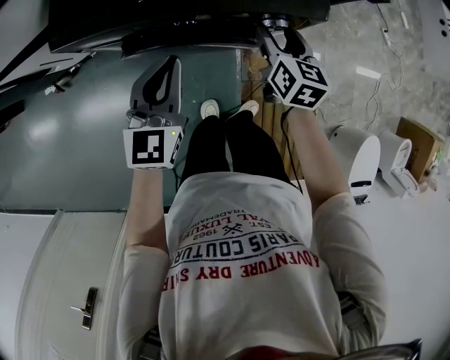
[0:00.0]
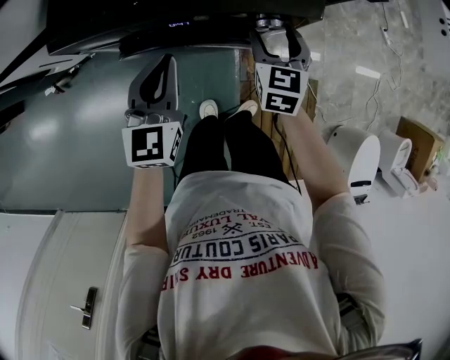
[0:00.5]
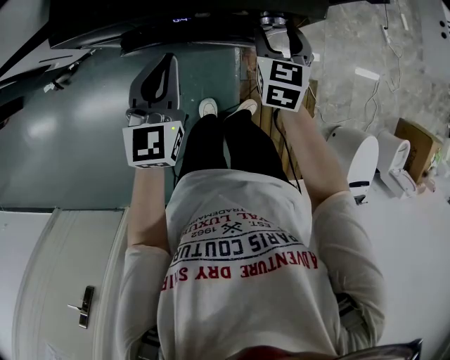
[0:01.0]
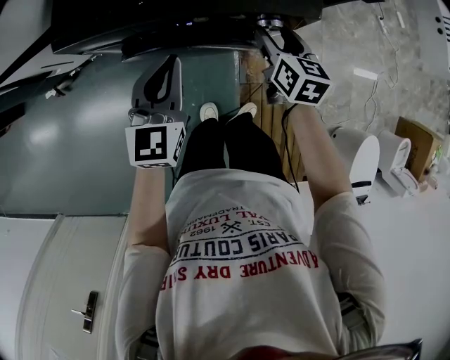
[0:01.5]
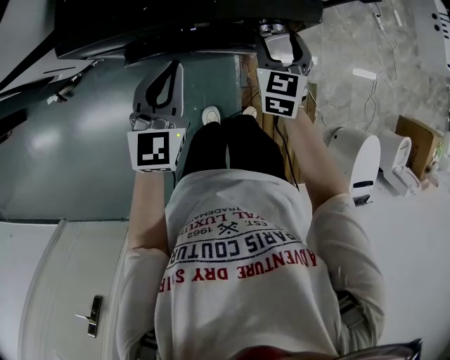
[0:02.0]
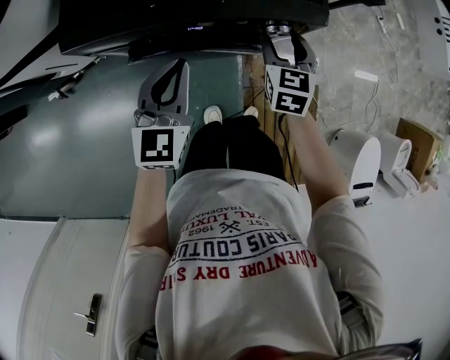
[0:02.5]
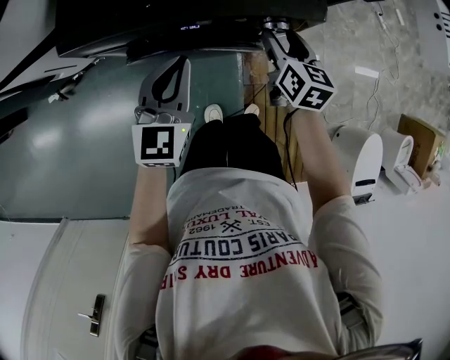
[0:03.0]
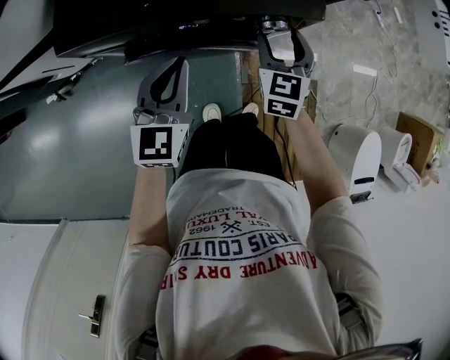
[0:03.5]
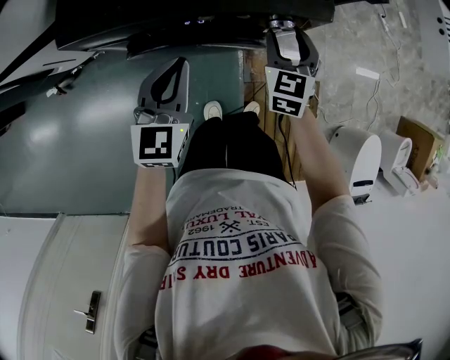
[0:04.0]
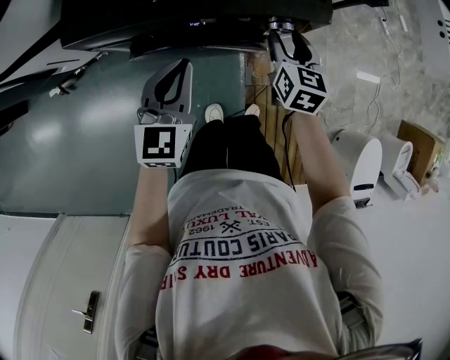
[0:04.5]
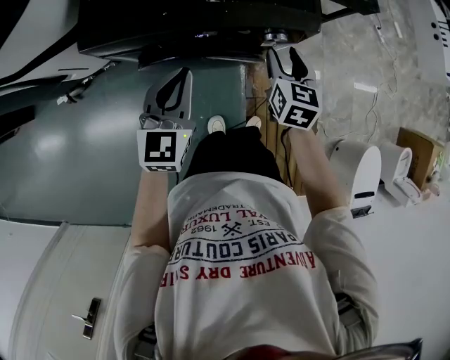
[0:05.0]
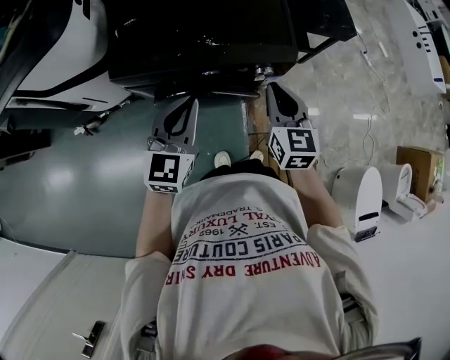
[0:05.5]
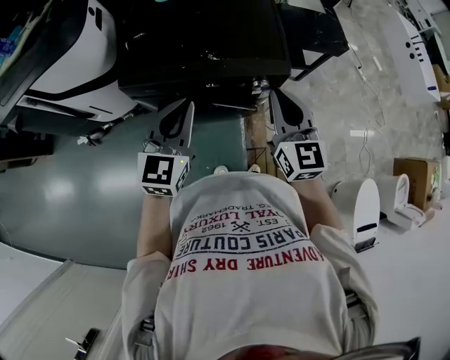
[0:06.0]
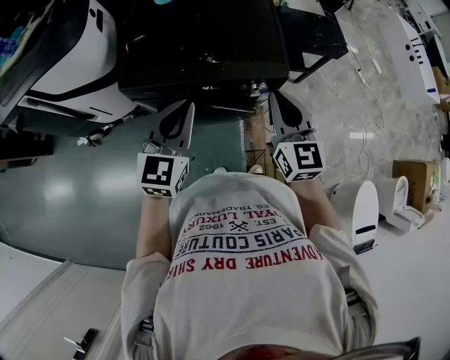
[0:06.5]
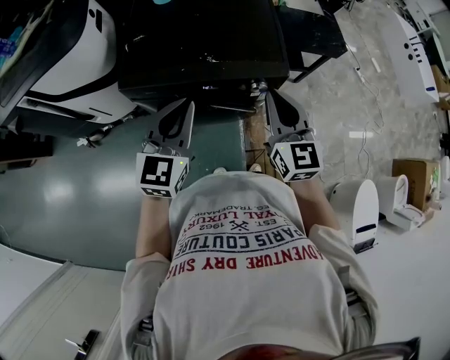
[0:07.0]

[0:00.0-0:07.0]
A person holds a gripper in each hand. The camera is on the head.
0:00.0 to 0:02.0: The right gripper turns by roughly 30 degrees.
0:05.0 to 0:07.0: The grippers both shift upward by approximately 20 cm. The right gripper turns by about 30 degrees, and closes up.

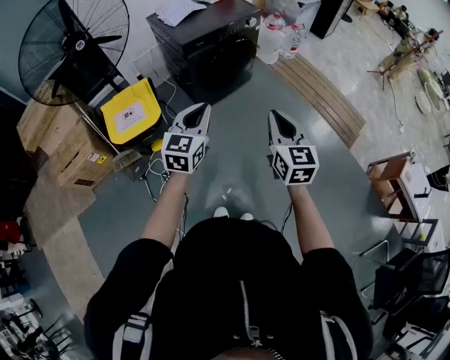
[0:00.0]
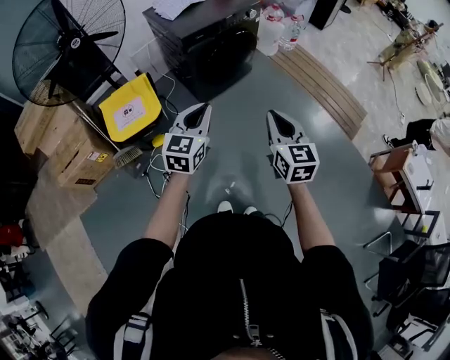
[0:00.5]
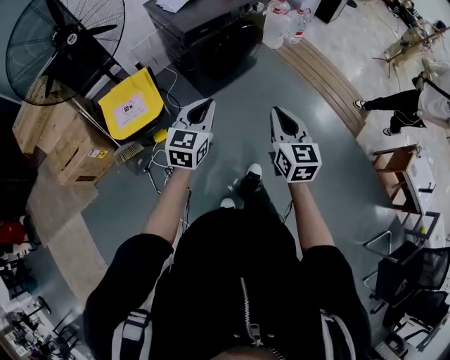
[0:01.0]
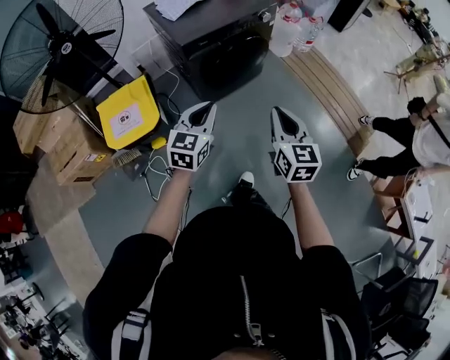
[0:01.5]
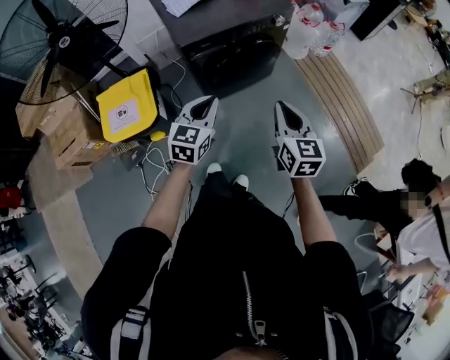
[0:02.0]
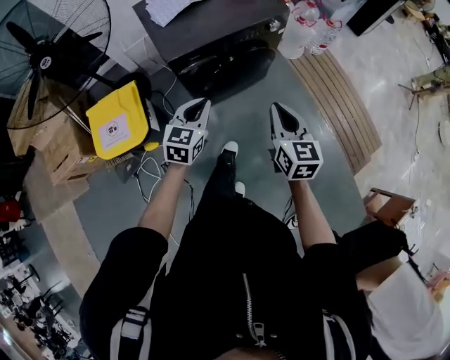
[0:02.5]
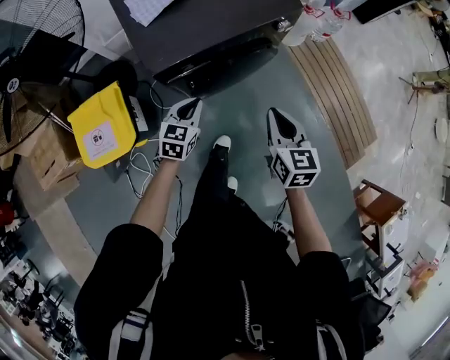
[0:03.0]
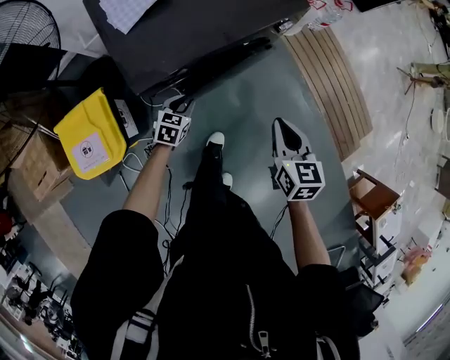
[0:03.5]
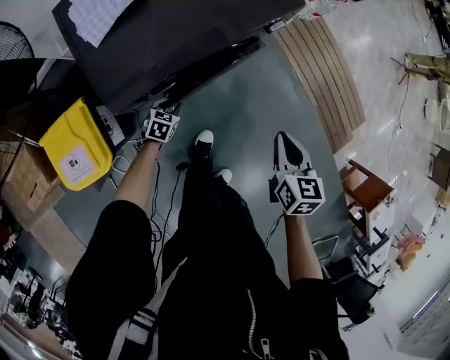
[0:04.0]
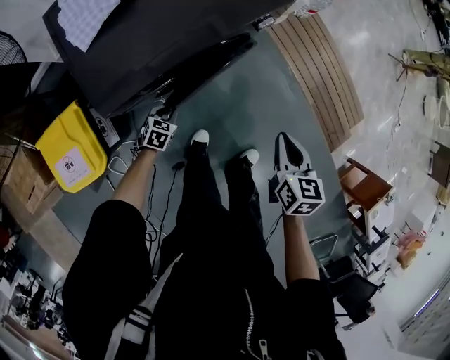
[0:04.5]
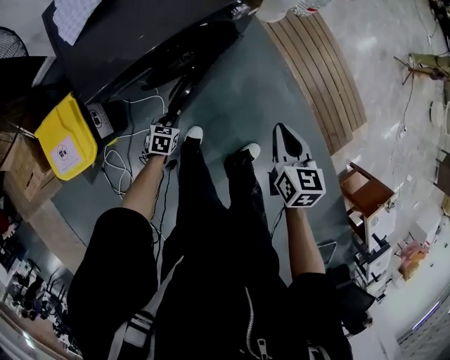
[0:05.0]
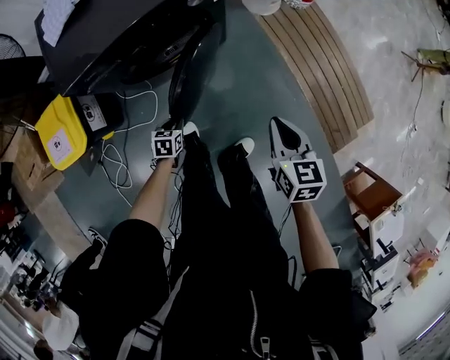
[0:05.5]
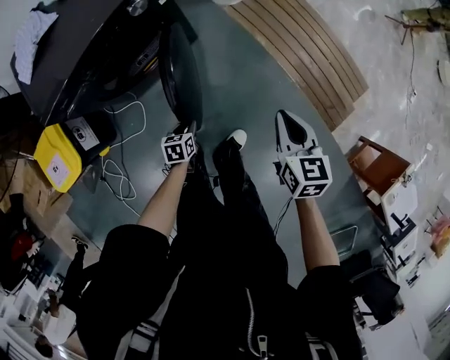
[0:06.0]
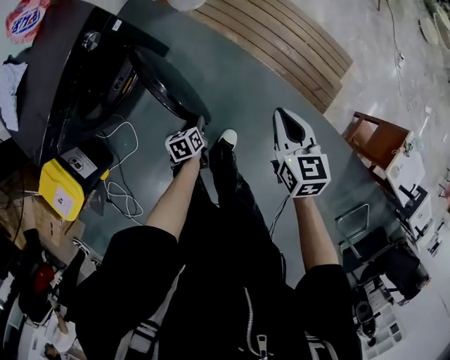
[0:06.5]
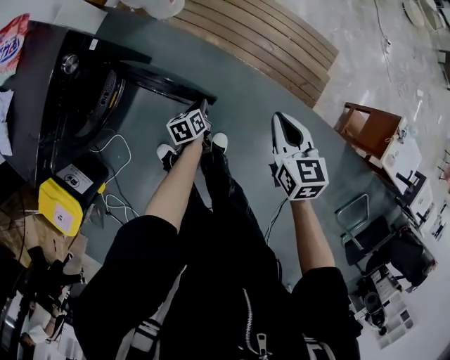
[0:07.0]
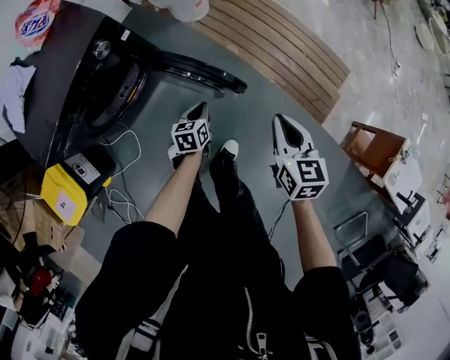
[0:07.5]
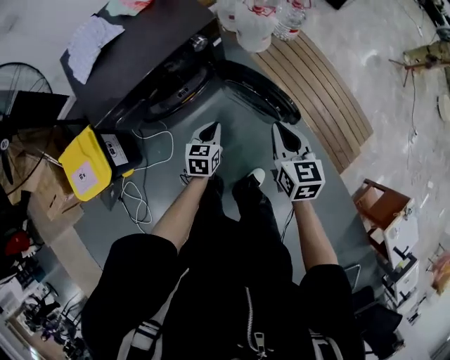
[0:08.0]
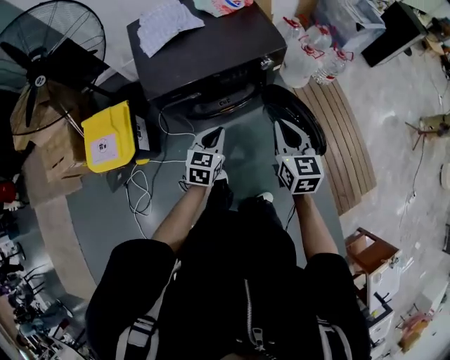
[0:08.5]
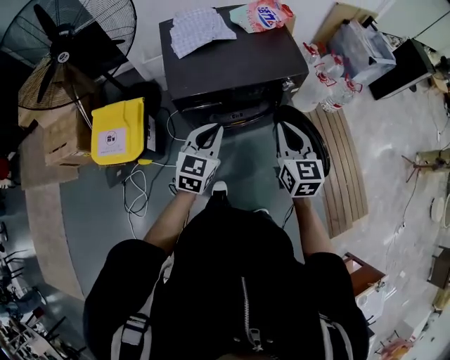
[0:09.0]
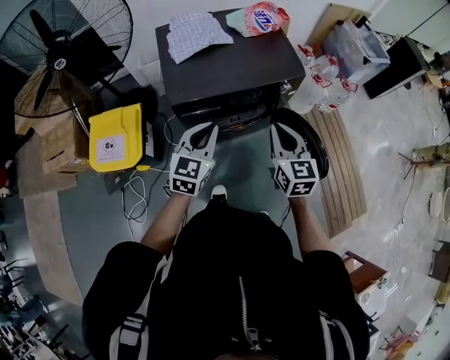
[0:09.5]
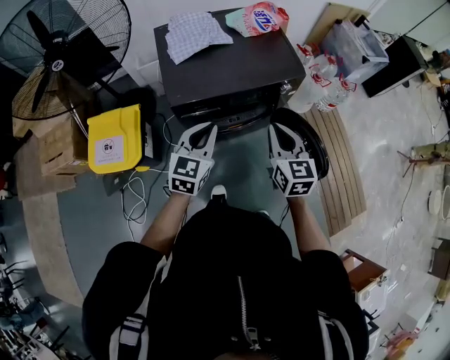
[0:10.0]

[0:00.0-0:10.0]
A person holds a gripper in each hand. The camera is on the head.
0:00.0 to 0:02.0: The grippers both shift forward by approximately 30 cm.
0:02.0 to 0:04.0: The left gripper shifts about 50 cm downward and forward, tilts its fingers approximately 40 degrees downward, and opens up, while the right gripper goes approximately 30 cm forward and downward, and turns by roughly 30 degrees.
0:04.0 to 0:06.0: Both grippers move to the right, some 35 cm. The left gripper swivels approximately 20 degrees.
0:06.0 to 0:08.0: The right gripper is displaced to the left and upward by approximately 15 cm. Meanwhile the left gripper moves upward and forward, some 20 cm, travels to the right and back again, about 20 cm each way, changes its angle by about 20 degrees, and closes up.
0:08.0 to 0:10.0: The left gripper is displaced to the left and upward by some 35 cm, and turns by roughly 30 degrees. Meanwhile the right gripper heads to the left, covering approximately 25 cm, and changes its angle by roughly 20 degrees.

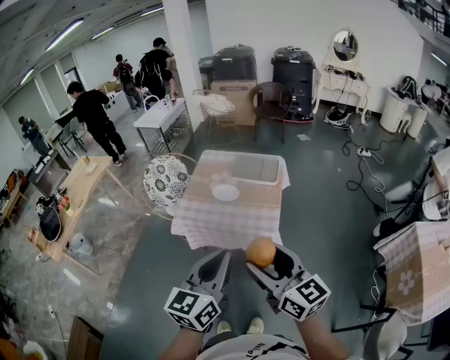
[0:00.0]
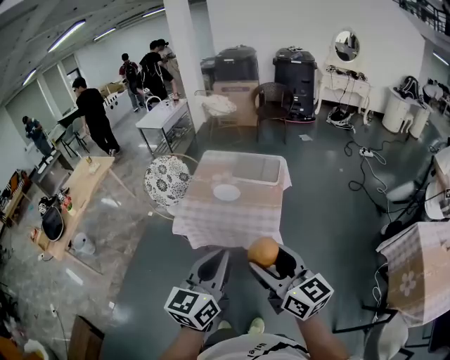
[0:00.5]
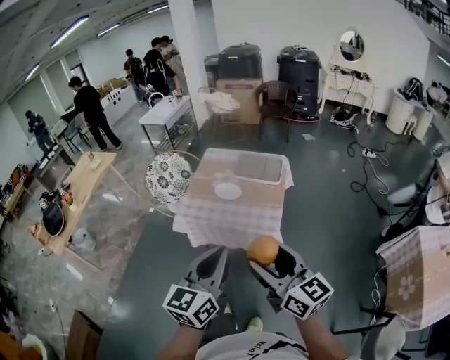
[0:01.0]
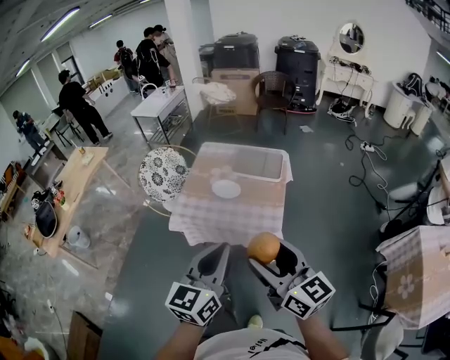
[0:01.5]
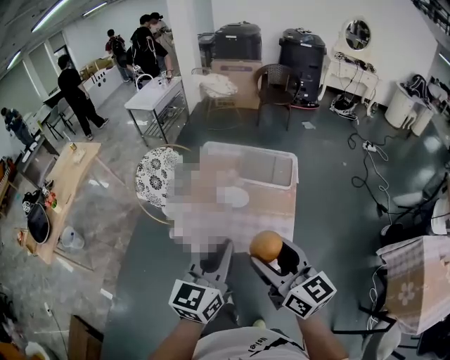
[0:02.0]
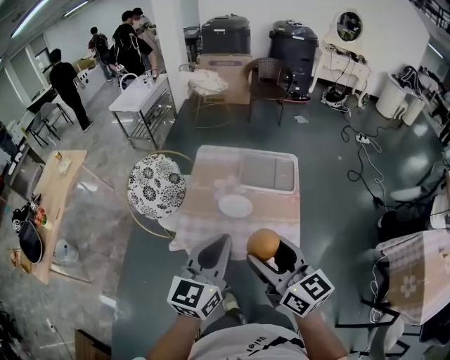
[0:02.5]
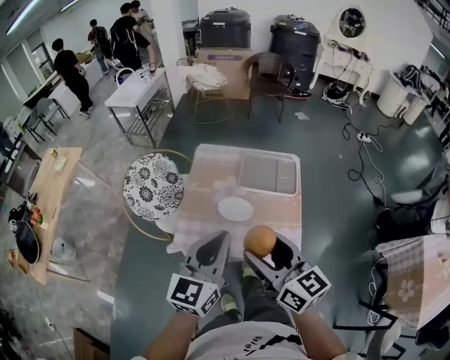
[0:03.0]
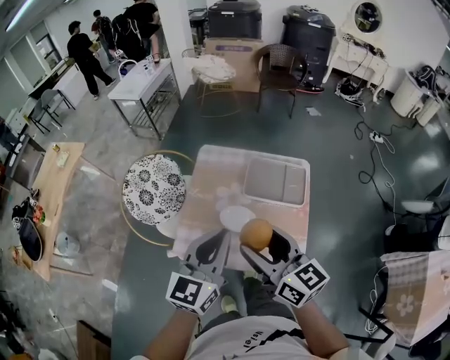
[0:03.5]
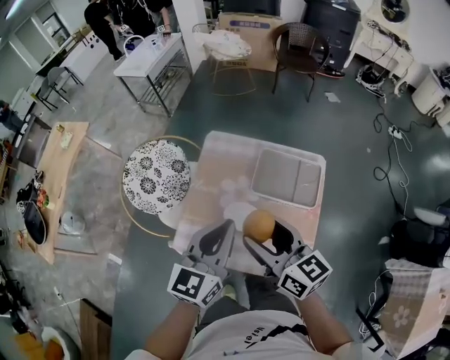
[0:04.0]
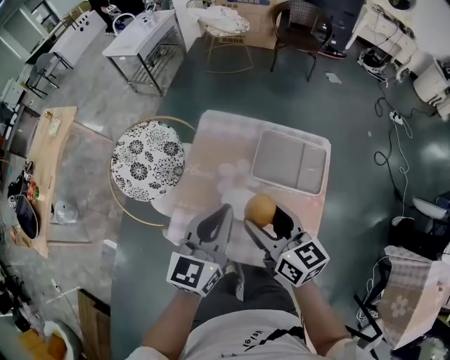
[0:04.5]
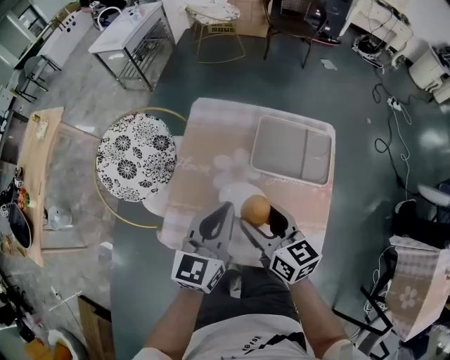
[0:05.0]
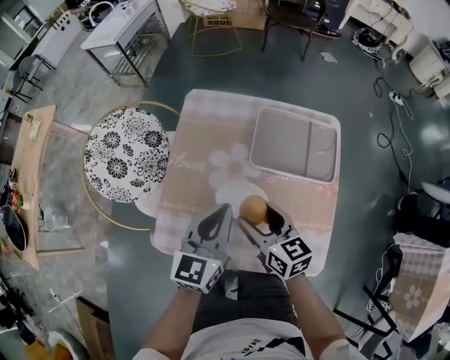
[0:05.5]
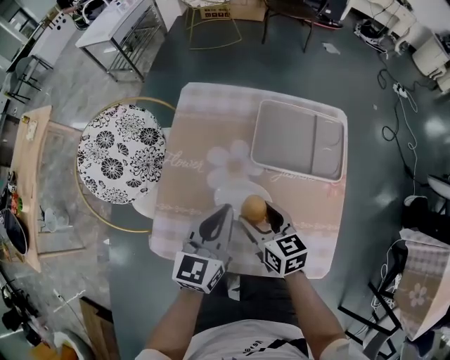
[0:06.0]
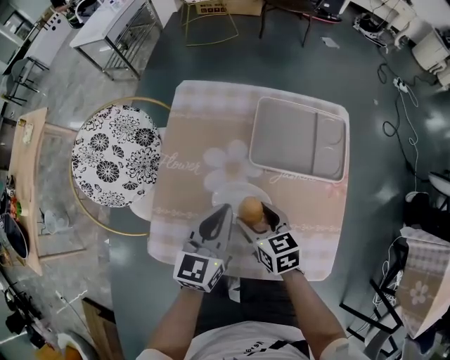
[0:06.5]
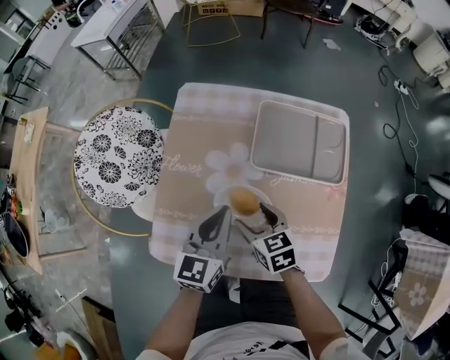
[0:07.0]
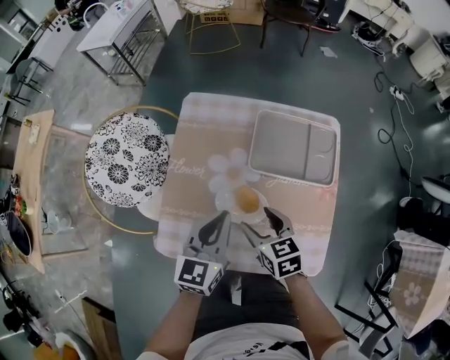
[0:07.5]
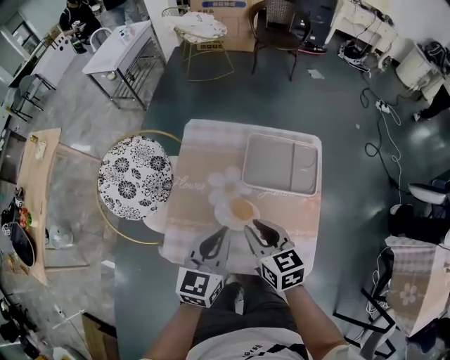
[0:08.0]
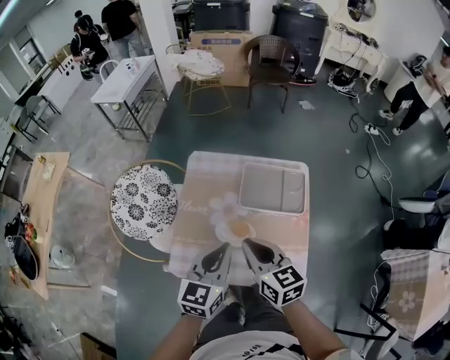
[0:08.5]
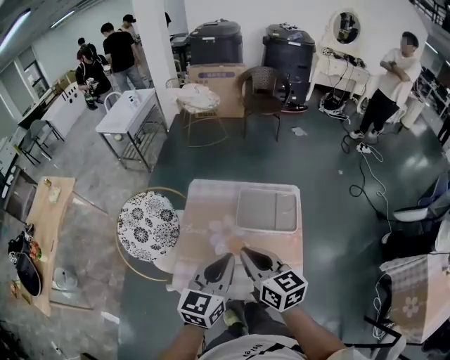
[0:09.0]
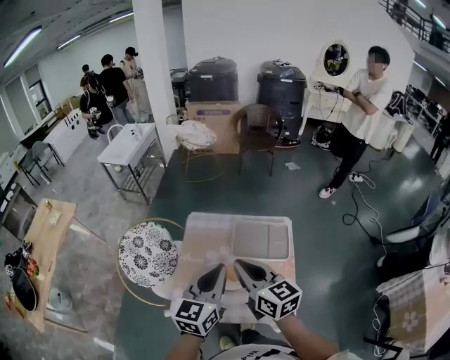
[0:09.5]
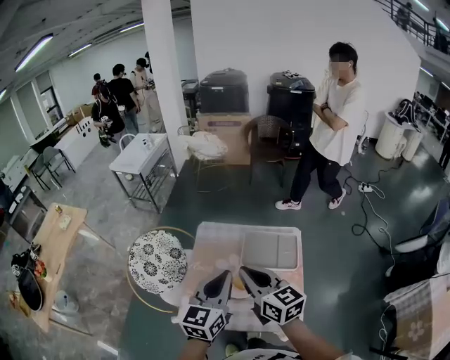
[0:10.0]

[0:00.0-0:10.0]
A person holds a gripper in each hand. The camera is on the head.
0:00.0 to 0:02.0: Both grippers move forward, roughly 20 cm.
0:02.0 to 0:04.0: Both grippers move forward, approximately 30 cm.
0:04.0 to 0:06.0: The two grippers go about 30 cm downward. The right gripper rotates roughly 20 degrees.
0:06.0 to 0:08.0: The two grippers go roughly 15 cm upward. The right gripper closes its fingers.
0:08.0 to 0:10.0: The grippers both shift upward by approximately 20 cm. The right gripper changes its angle by some 20 degrees.
